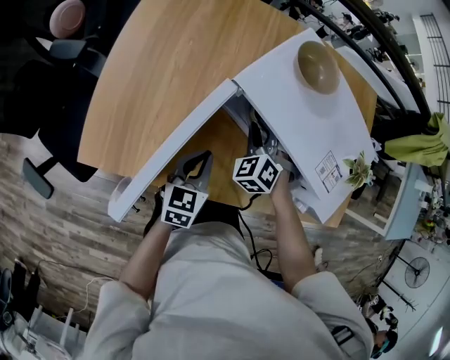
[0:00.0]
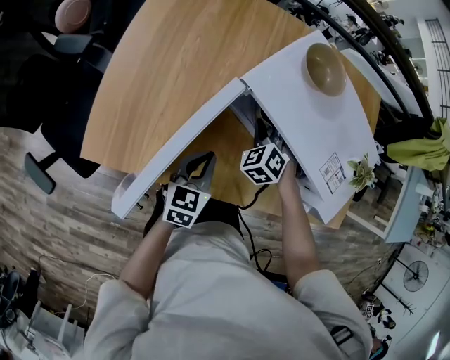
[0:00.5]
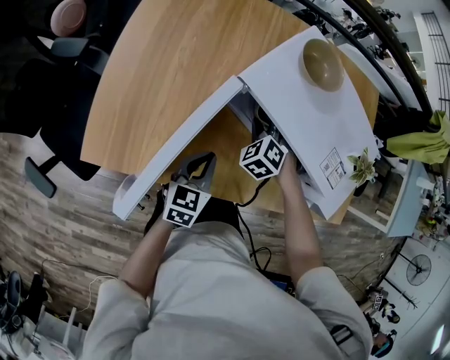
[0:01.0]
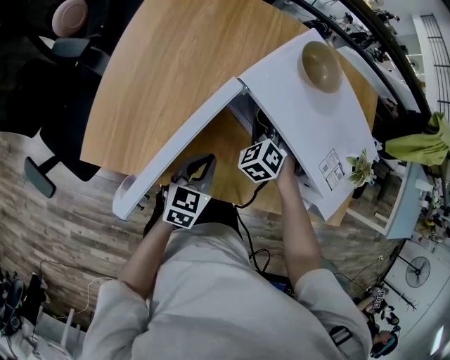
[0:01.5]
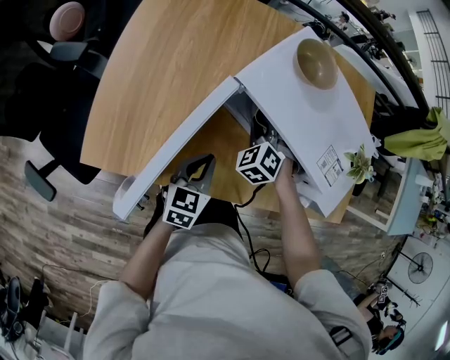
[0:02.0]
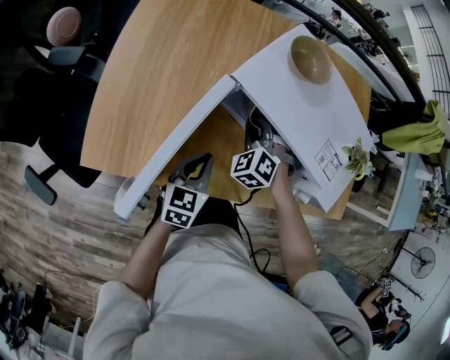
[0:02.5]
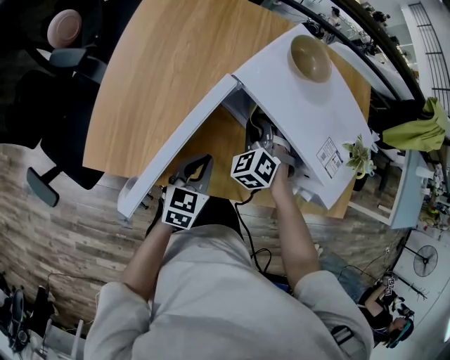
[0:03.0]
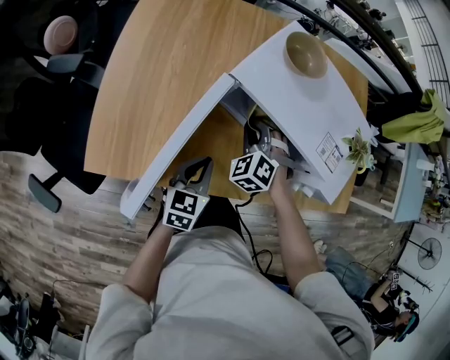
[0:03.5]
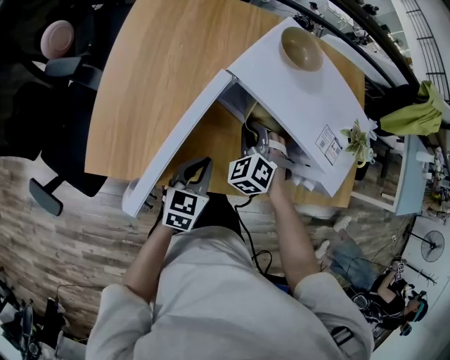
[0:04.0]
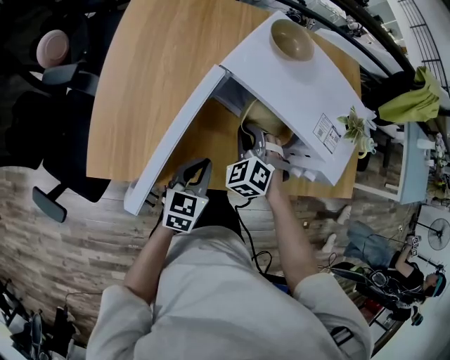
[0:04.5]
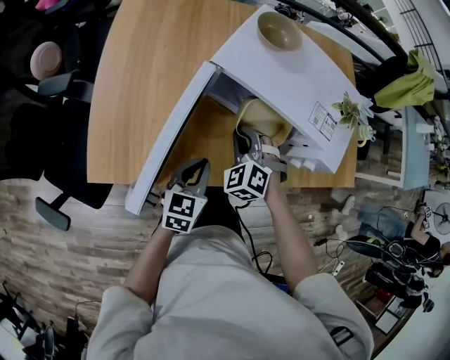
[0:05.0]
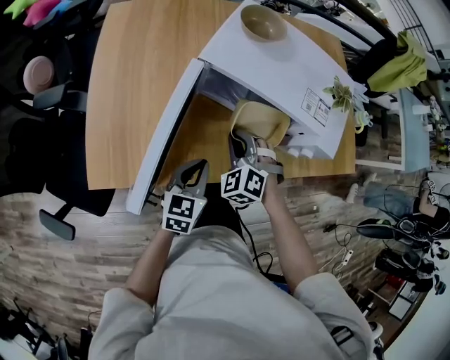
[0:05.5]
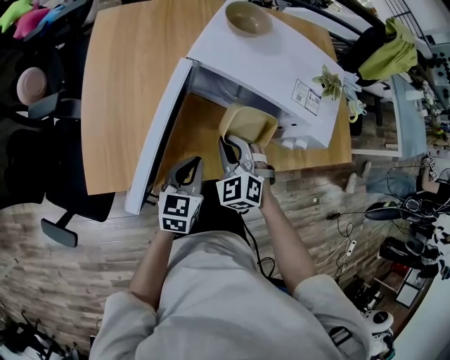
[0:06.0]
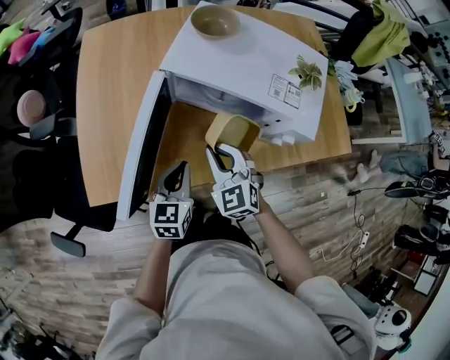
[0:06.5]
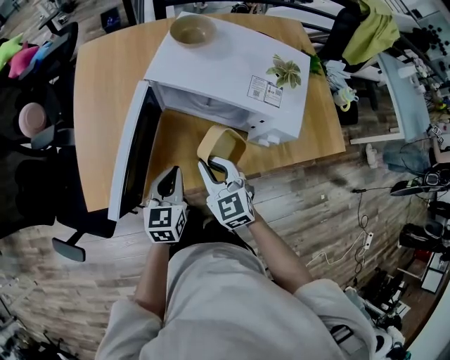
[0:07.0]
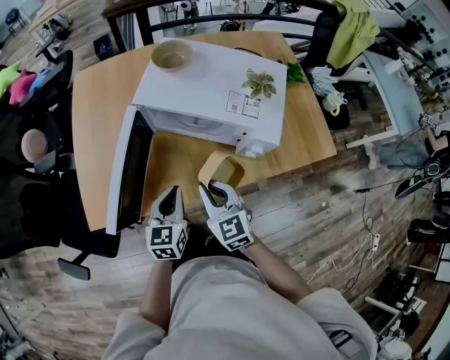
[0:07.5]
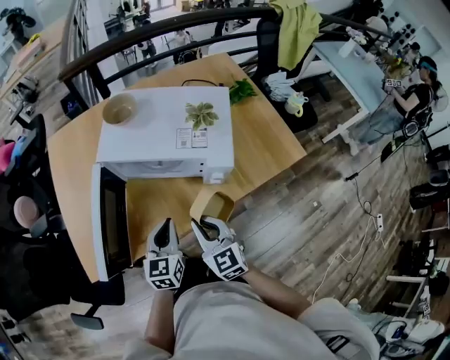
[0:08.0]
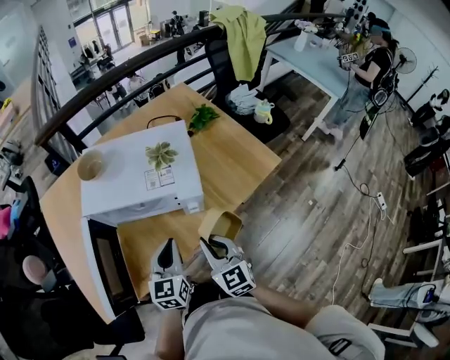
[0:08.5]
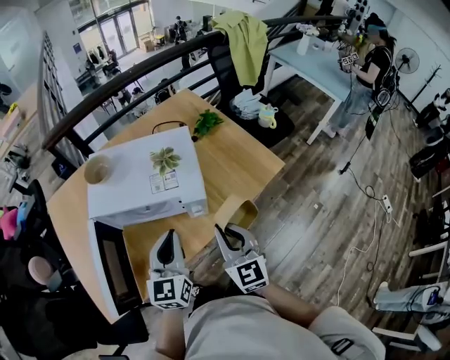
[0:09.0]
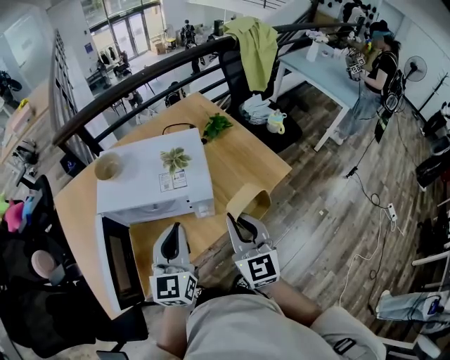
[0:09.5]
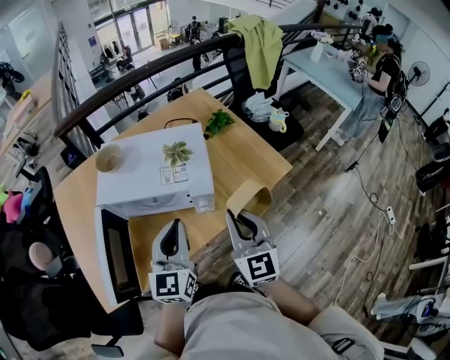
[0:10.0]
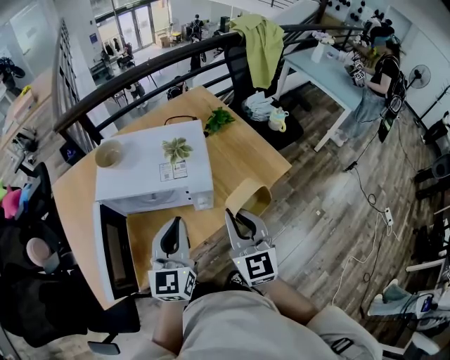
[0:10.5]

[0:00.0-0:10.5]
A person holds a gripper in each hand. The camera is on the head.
0:00.0 to 0:02.0: There are only small adjustments of the grippers.
0:02.0 to 0:04.0: The right gripper travels backward by about 5 cm.
0:04.0 to 0:06.5: The right gripper goes roughly 15 cm backward and upward, and rotates some 40 degrees.
0:06.5 to 0:08.5: The left gripper is displaced to the right and upward by roughly 20 cm; the right gripper shifts approximately 20 cm to the right and backward, and changes its angle by some 40 degrees.
0:08.5 to 0:10.5: The right gripper moves upward and to the right, some 15 cm. Meanwhile the left gripper shifts about 15 cm upward.

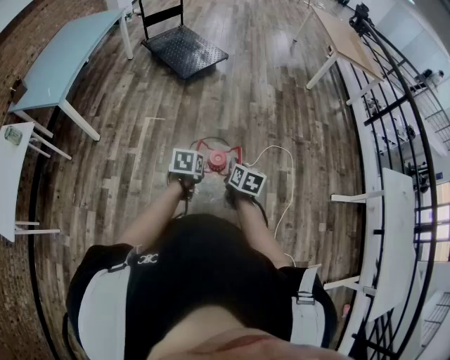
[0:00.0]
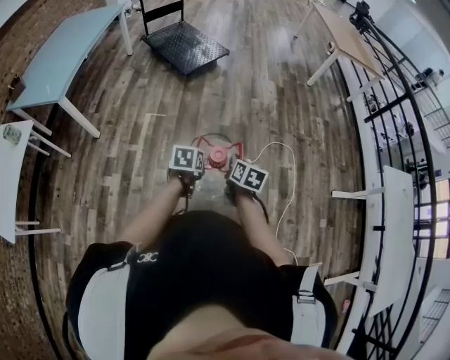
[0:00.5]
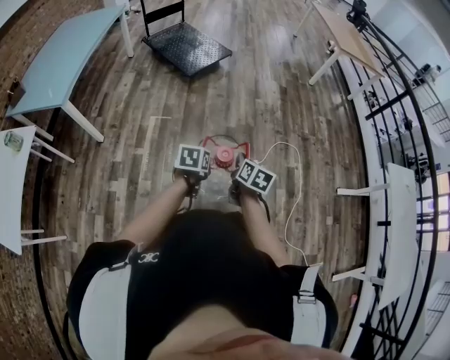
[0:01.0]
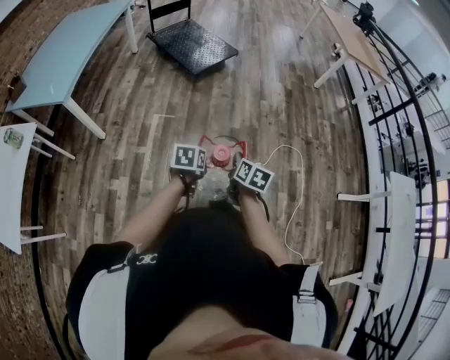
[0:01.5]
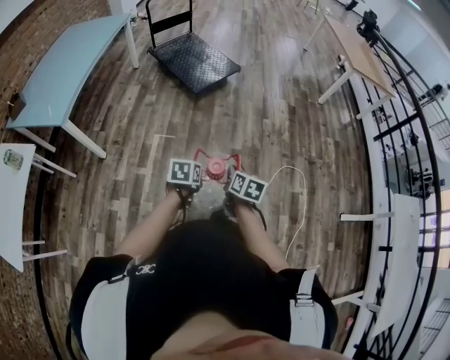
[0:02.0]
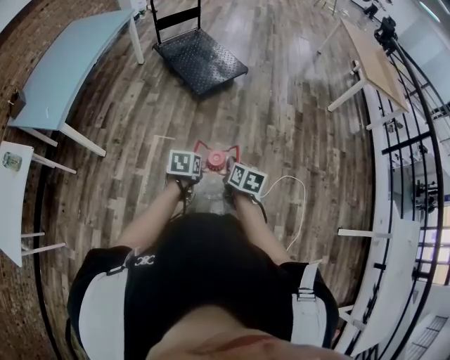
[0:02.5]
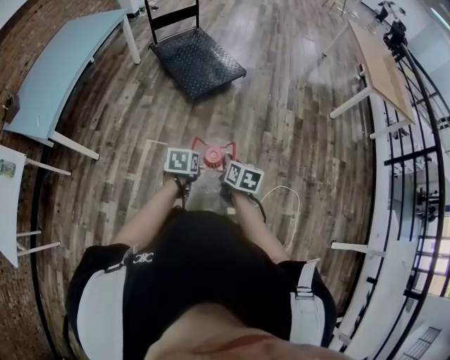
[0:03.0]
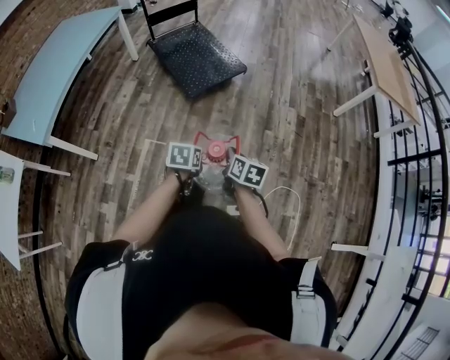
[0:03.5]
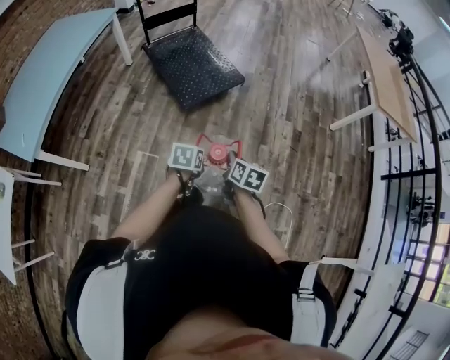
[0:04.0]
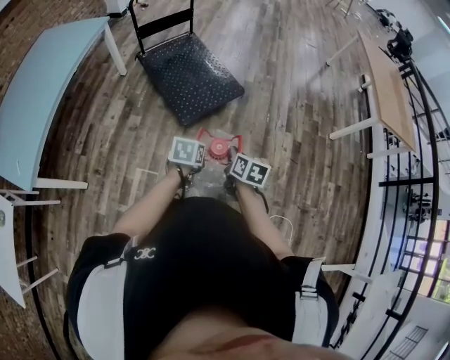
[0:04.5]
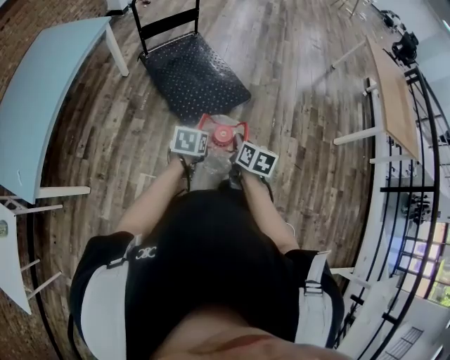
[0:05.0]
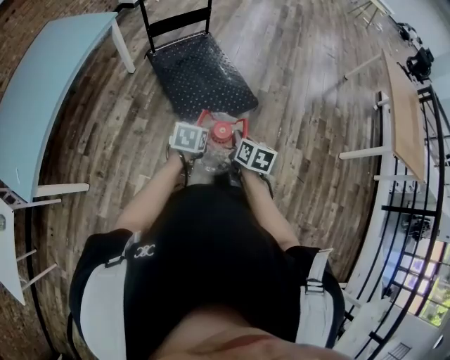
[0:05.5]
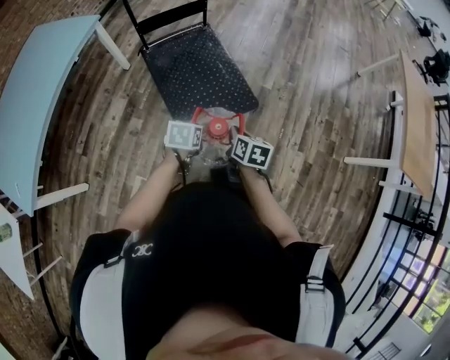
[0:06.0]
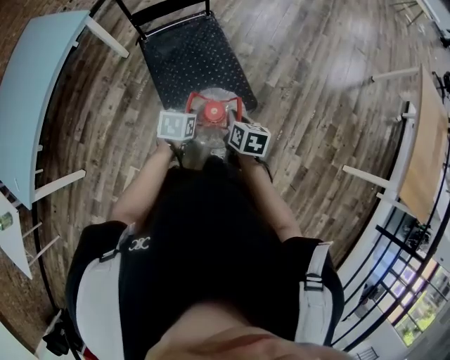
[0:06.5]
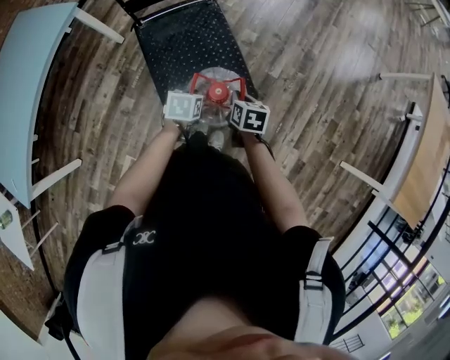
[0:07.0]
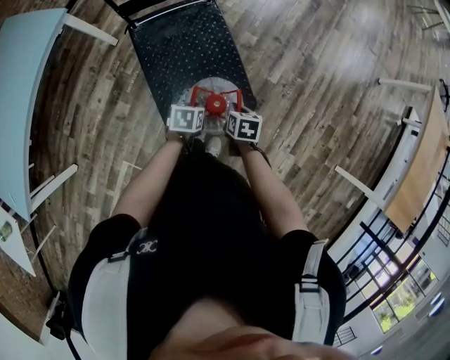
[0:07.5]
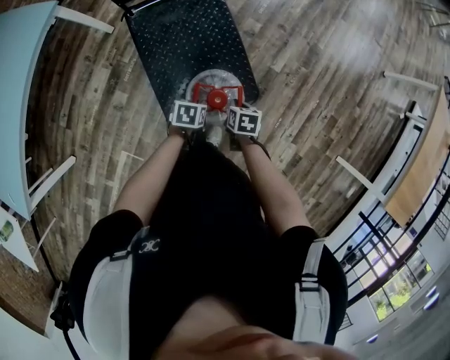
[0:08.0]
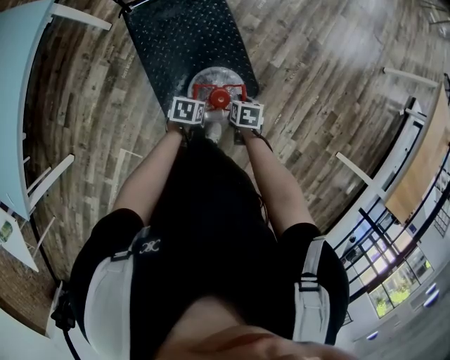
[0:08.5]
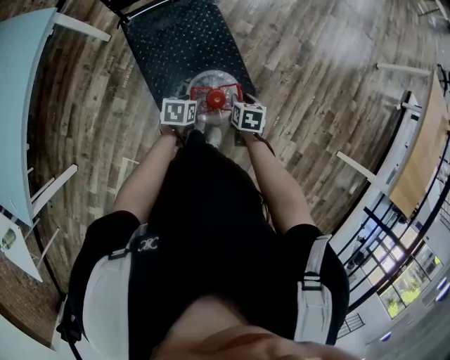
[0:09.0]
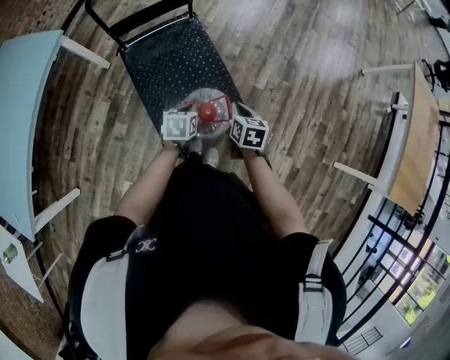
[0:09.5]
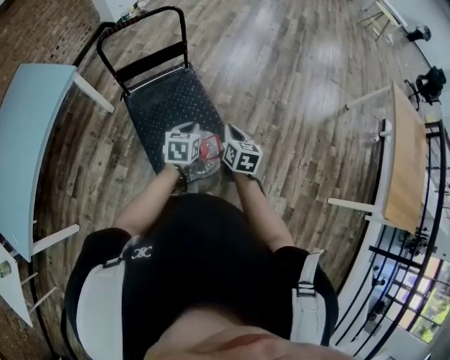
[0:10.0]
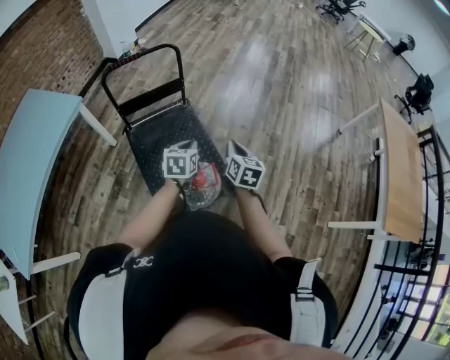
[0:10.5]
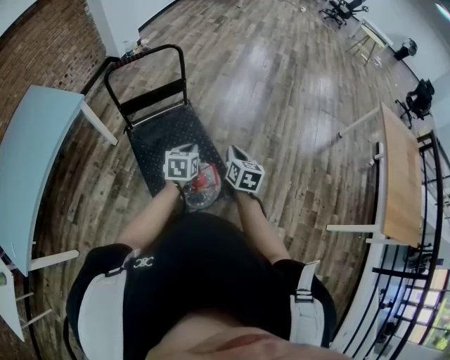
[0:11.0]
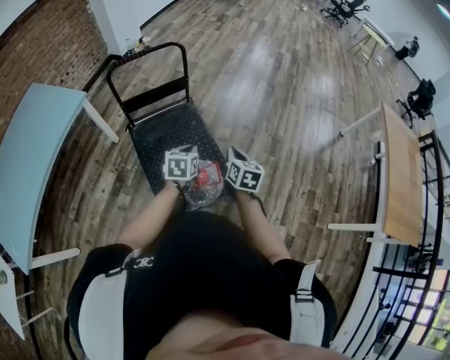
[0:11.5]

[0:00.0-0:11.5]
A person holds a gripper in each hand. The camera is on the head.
0:00.0 to 0:02.0: The grippers both shift to the left and forward by roughly 15 cm.
0:02.0 to 0:04.0: The grippers both shift forward by roughly 40 cm.
0:04.0 to 0:06.0: Both grippers are carried forward, roughly 40 cm.
0:06.0 to 0:07.5: Both grippers travel together forward and downward, some 25 cm. The right gripper swivels some 20 degrees.
0:07.5 to 0:09.5: The grippers both shift upward by roughly 5 cm. The right gripper opens, then closes again; the left gripper opens and closes again.
0:09.5 to 0:11.5: The grippers both shift upward by some 15 cm.

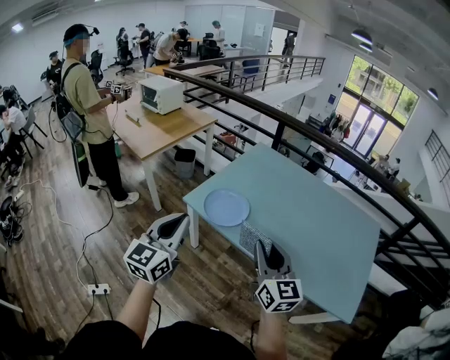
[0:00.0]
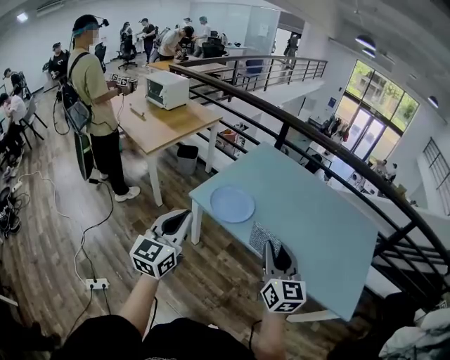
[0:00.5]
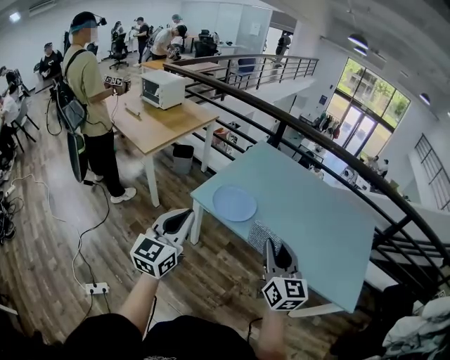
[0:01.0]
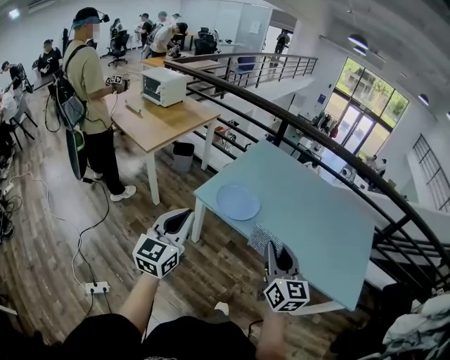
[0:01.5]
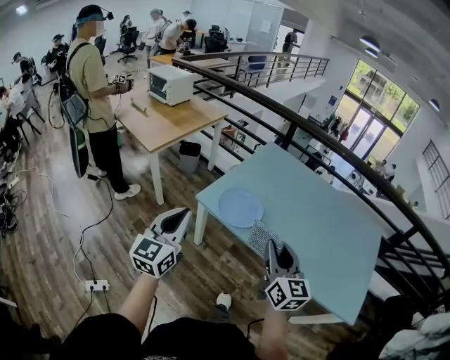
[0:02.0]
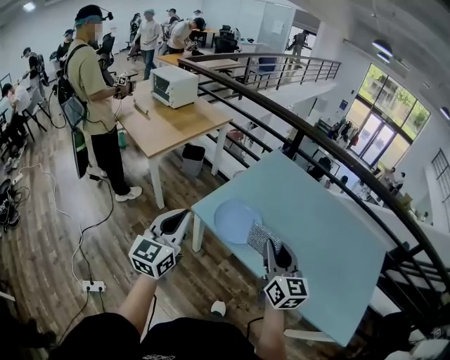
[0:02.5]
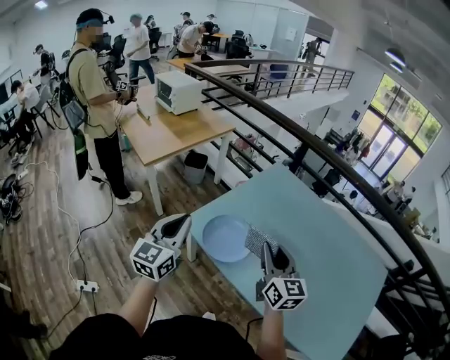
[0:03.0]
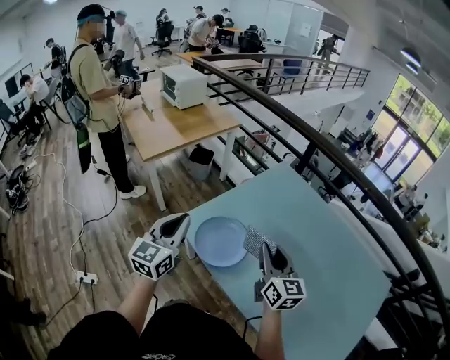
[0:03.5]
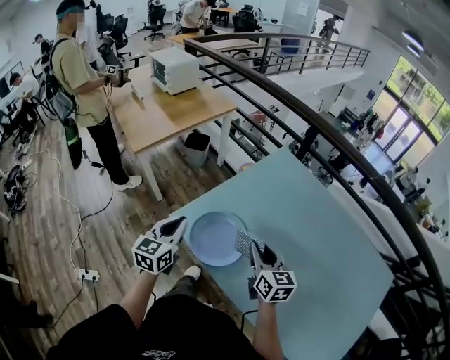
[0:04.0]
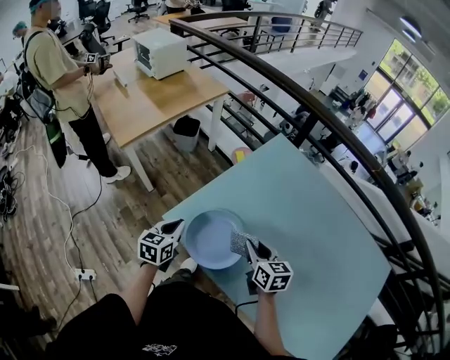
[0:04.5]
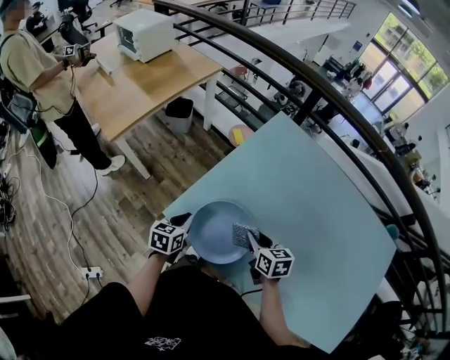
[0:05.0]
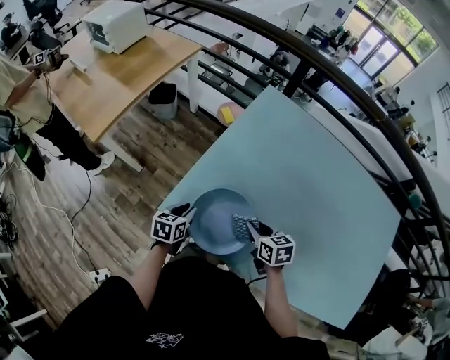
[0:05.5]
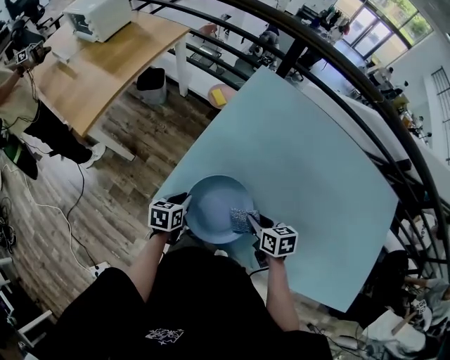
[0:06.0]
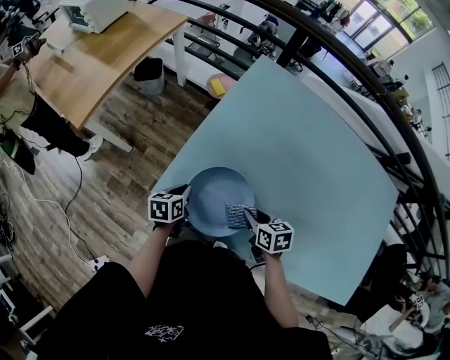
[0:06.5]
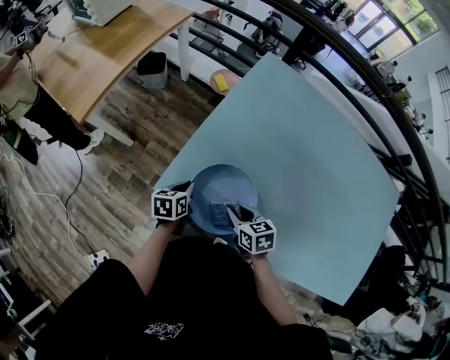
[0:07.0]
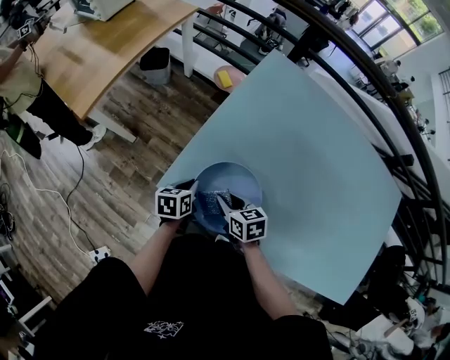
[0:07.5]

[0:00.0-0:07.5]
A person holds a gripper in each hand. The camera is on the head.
0:00.0 to 0:02.0: The left gripper shifts some 10 cm to the left. Meanwhile the right gripper shifts roughly 5 cm to the left.
0:02.0 to 0:04.0: The left gripper moves forward, to the right and downward, some 35 cm, and changes its angle by some 20 degrees. The right gripper heads forward, covering about 30 cm, and swivels about 20 degrees.
0:04.0 to 0:05.5: The right gripper goes approximately 20 cm downward, and changes its angle by some 30 degrees, while the left gripper heads downward and forward, covering some 25 cm, and turns by about 40 degrees.
0:05.5 to 0:07.5: The right gripper moves to the left, roughly 10 cm.
